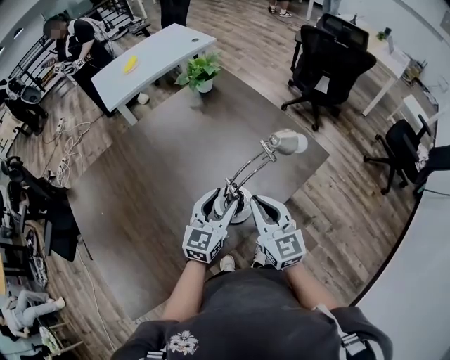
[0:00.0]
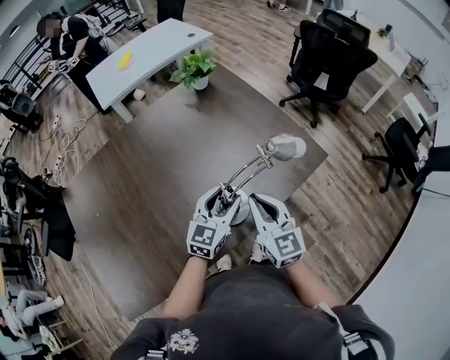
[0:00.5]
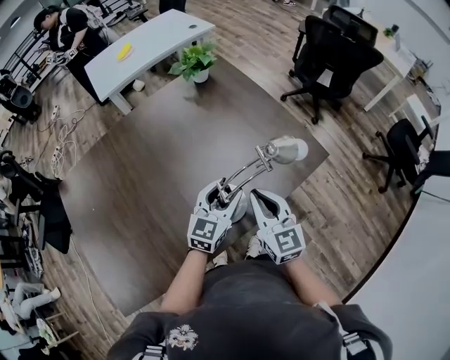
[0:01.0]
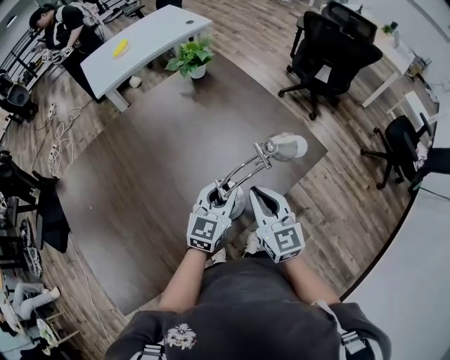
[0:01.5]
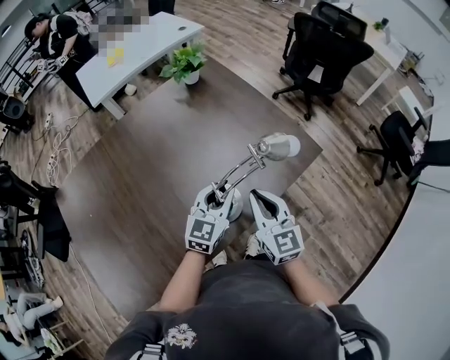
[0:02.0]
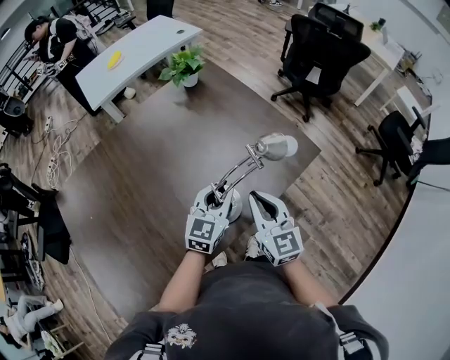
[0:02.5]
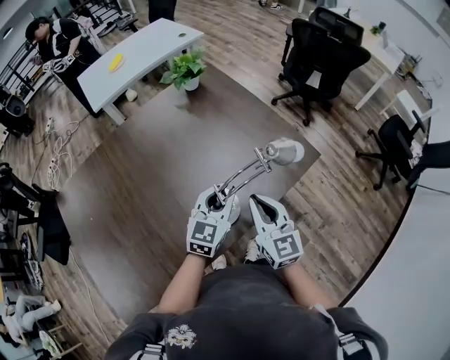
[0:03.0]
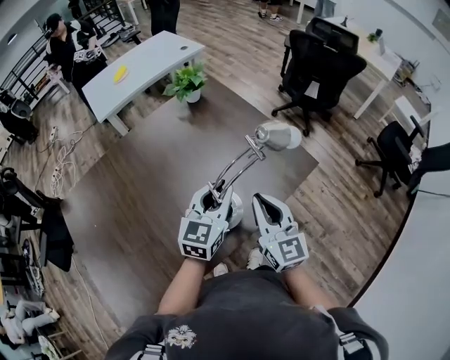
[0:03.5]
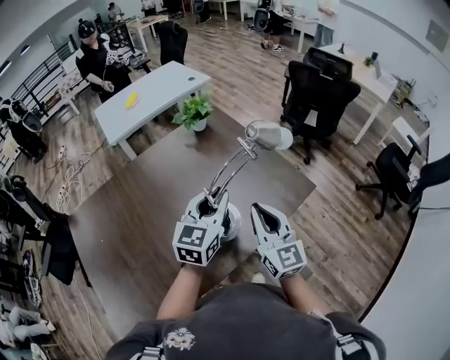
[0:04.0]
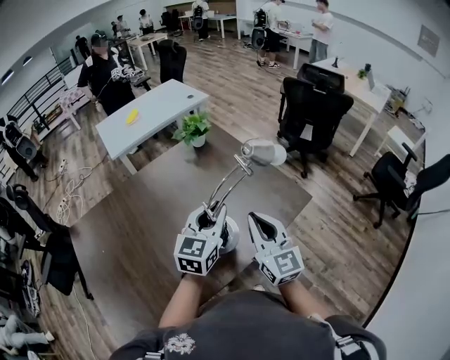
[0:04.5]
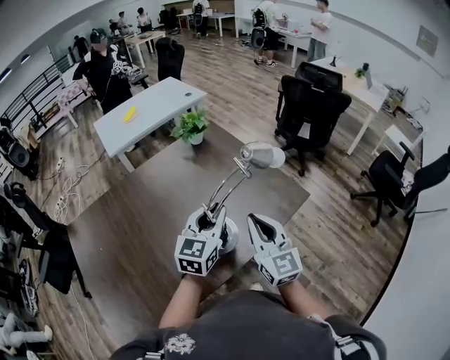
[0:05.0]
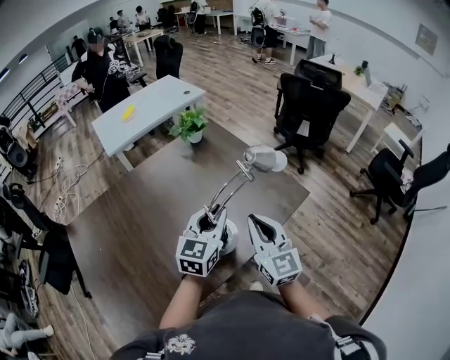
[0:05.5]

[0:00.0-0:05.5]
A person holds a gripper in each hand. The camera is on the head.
0:00.0 to 0:02.0: The left gripper changes place by approximately 5 cm, and closes its fingers.
0:02.0 to 0:03.5: The two grippers go roughly 5 cm upward.
0:03.5 to 0:05.5: The right gripper changes place by some 5 cm.

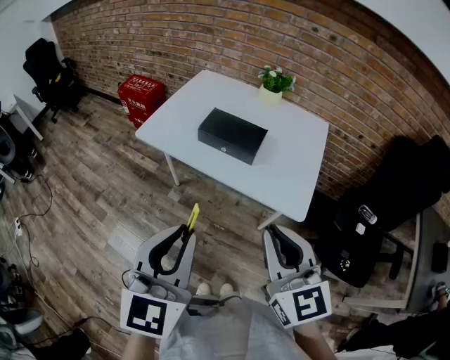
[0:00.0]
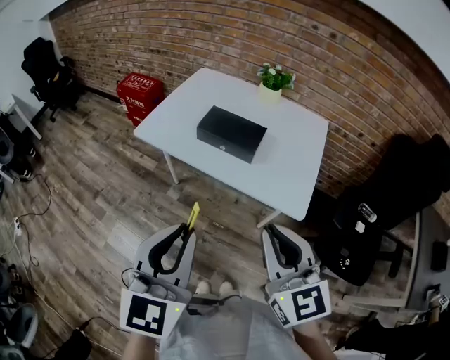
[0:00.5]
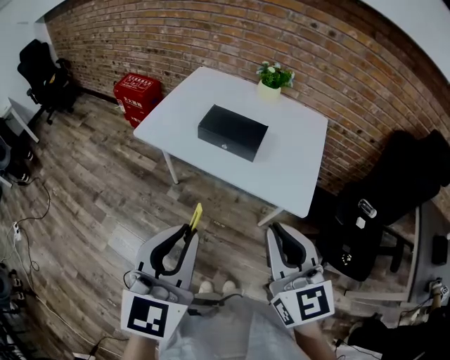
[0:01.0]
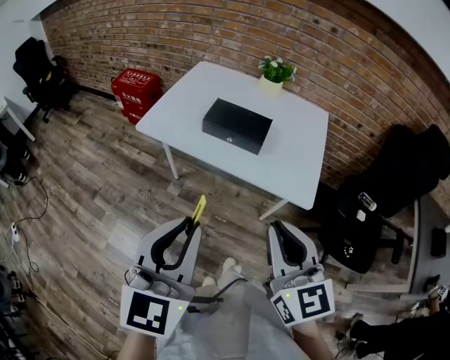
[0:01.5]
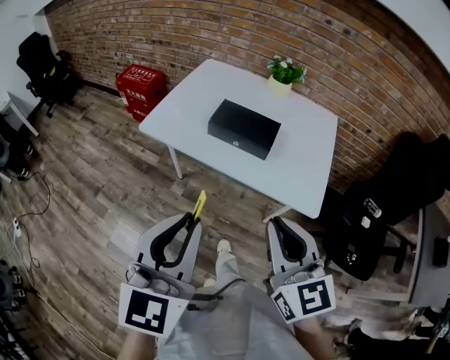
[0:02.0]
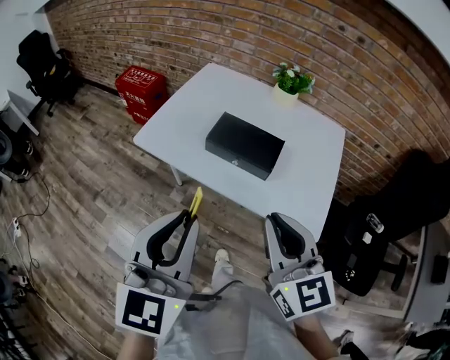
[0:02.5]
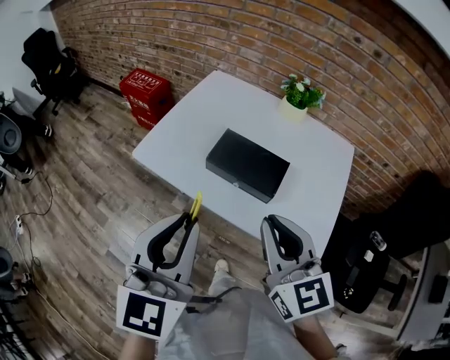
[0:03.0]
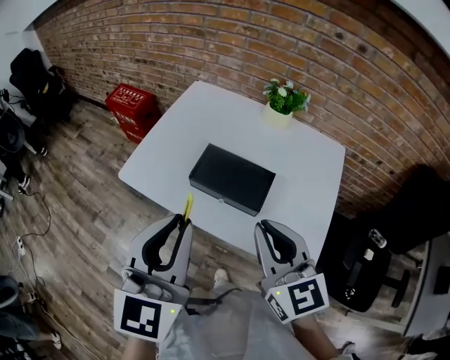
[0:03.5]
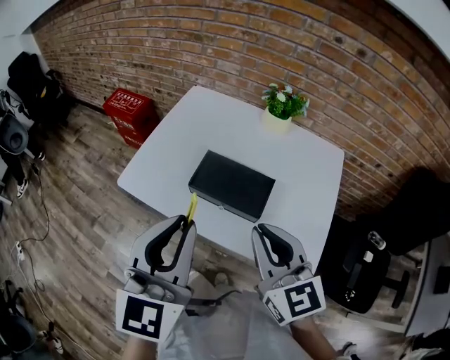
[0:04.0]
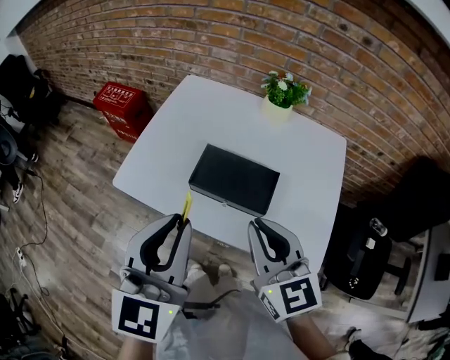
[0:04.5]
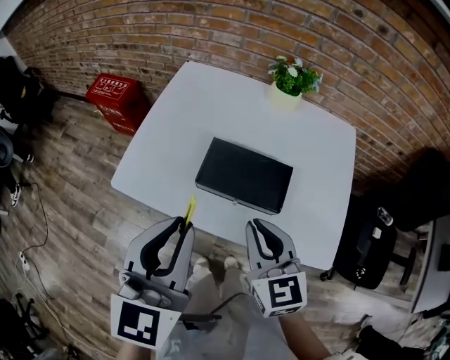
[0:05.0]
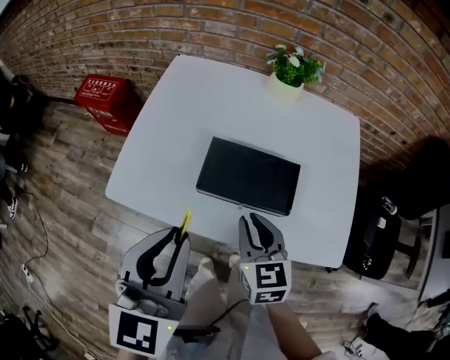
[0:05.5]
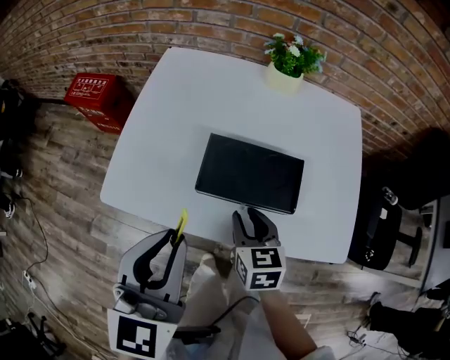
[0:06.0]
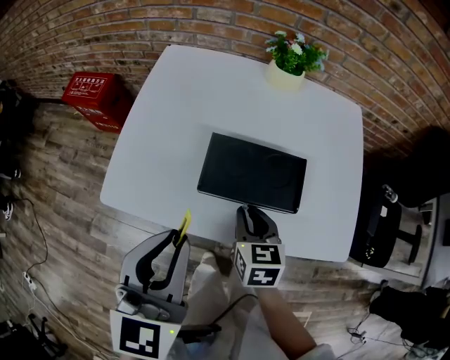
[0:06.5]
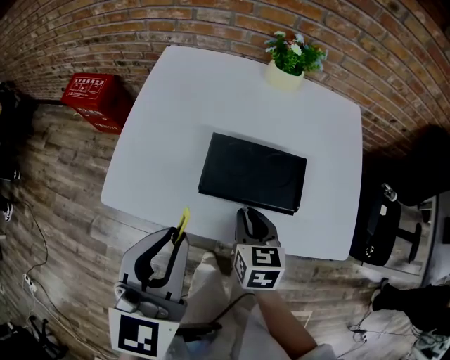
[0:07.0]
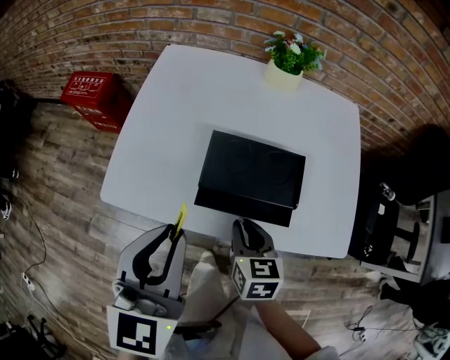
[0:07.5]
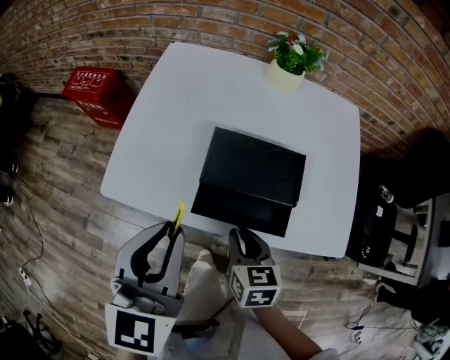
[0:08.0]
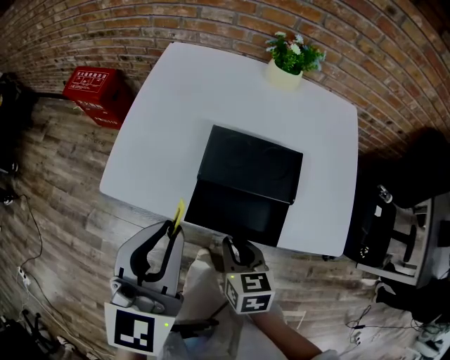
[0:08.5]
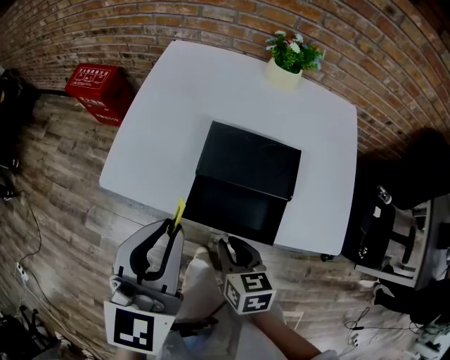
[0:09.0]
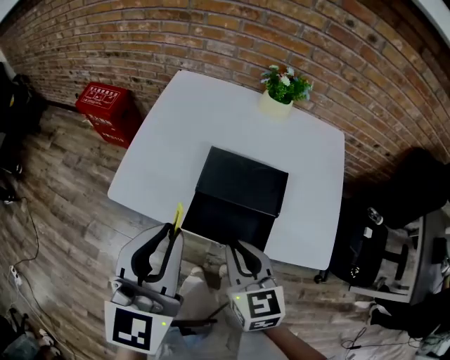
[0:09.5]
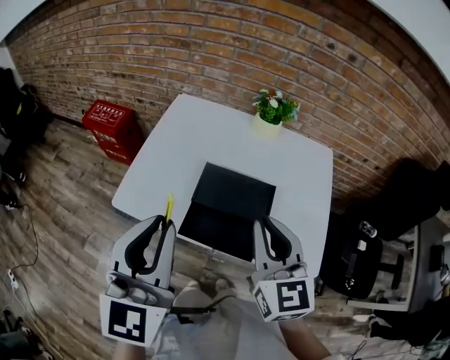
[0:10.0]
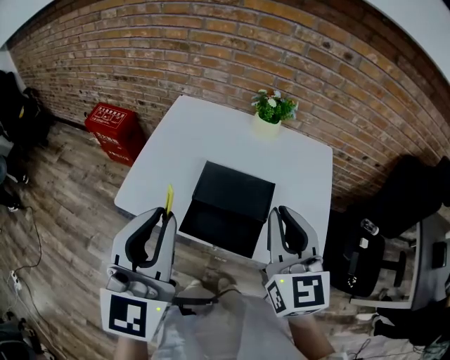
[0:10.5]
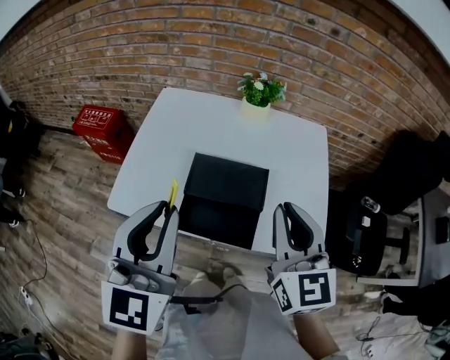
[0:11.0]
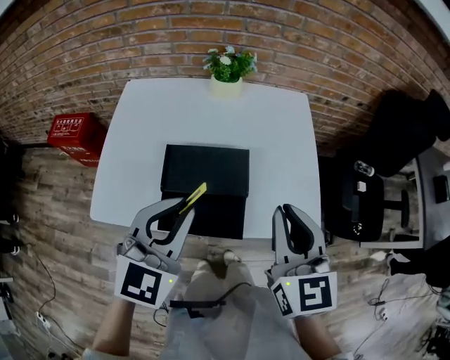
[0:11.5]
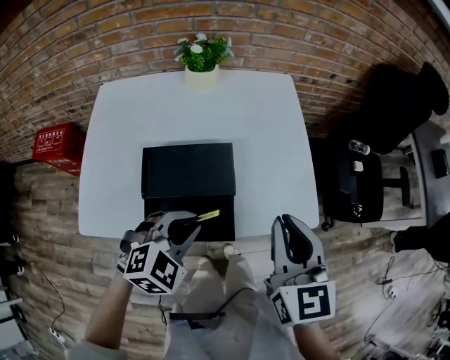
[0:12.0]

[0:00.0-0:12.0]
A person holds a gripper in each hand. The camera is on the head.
0:00.0 to 0:02.0: The two grippers go some 5 cm to the left.
0:02.0 to 0:04.0: Both grippers move forward, some 25 cm.
0:04.0 to 0:06.0: The left gripper shifts some 20 cm downward, to the left and forward, while the right gripper goes roughly 25 cm downward and forward, and rotates some 40 degrees.
0:06.0 to 0:08.0: The right gripper is displaced backward by approximately 5 cm.
0:08.0 to 0:10.0: The left gripper heads upward, covering about 15 cm, while the right gripper travels upward by approximately 25 cm, and points its fingers about 30 degrees further upward.
0:10.0 to 0:12.0: The left gripper heads downward, covering about 25 cm, and tilts its fingers some 40 degrees downward. Meanwhile the right gripper ends up approximately 15 cm from where it was, and swivels about 30 degrees.

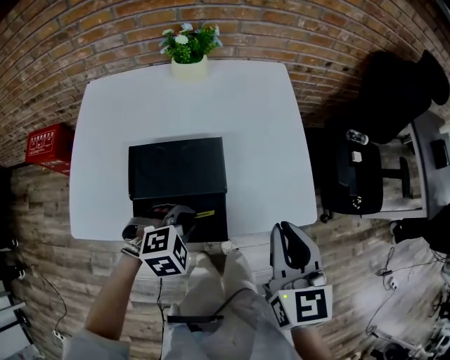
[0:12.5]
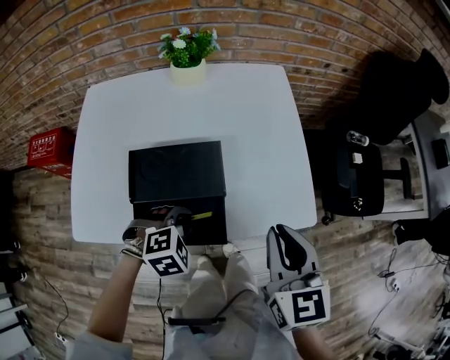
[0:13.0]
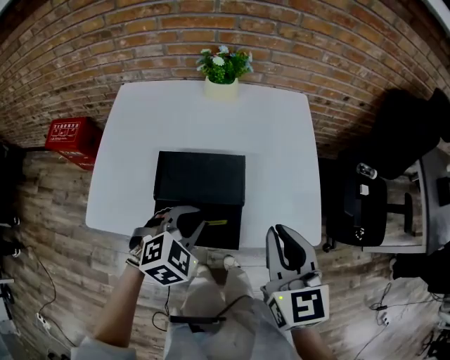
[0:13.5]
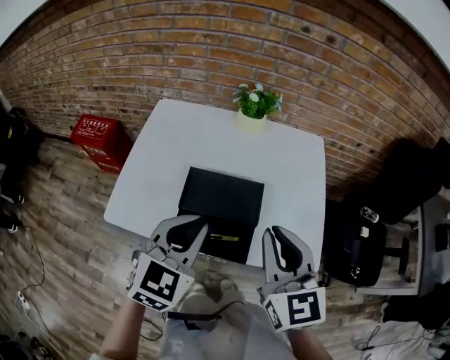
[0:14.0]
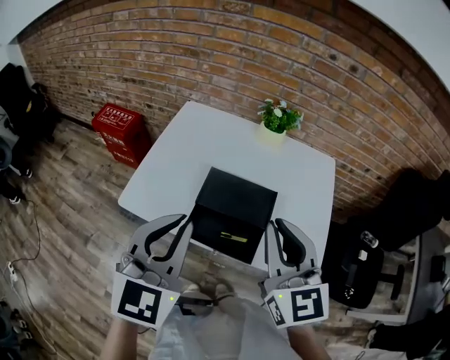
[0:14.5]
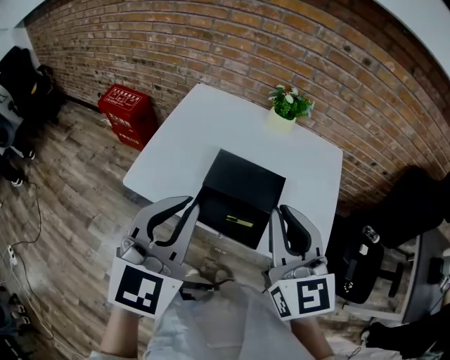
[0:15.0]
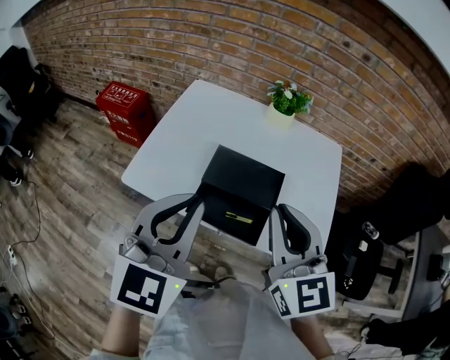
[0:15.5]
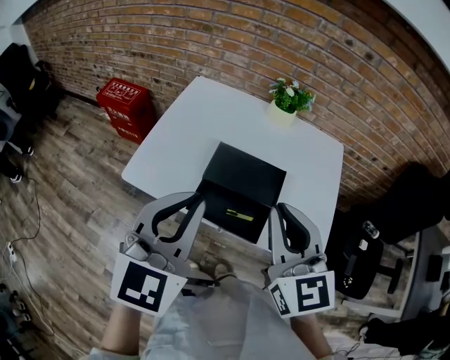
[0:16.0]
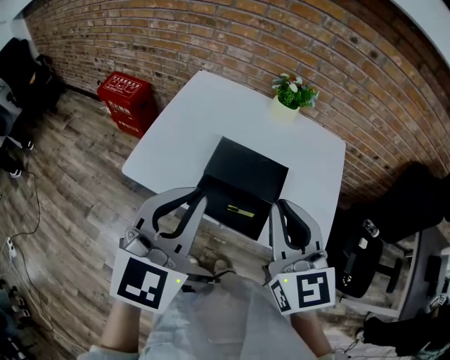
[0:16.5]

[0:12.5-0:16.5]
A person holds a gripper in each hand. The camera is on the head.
0:12.5 to 0:14.5: The right gripper moves upward, some 15 cm, and rotates roughly 40 degrees. Meanwhile the left gripper shifts approximately 35 cm upward, and angles its fingers upward, by approximately 50 degrees.
0:14.5 to 0:16.5: The grippers make only small movements.

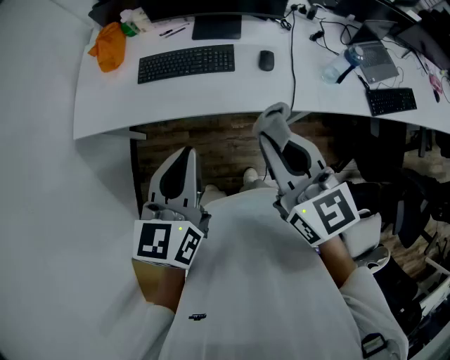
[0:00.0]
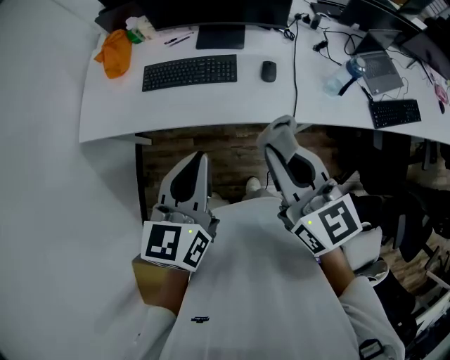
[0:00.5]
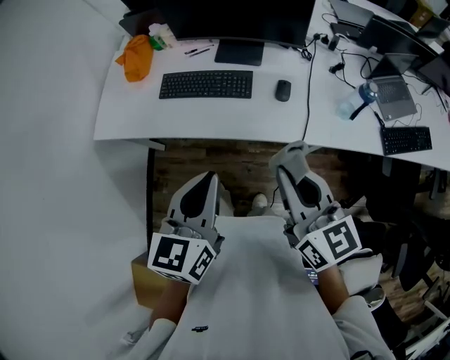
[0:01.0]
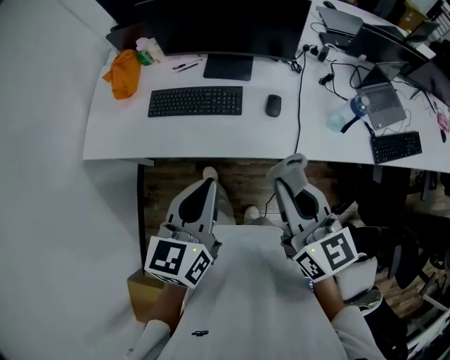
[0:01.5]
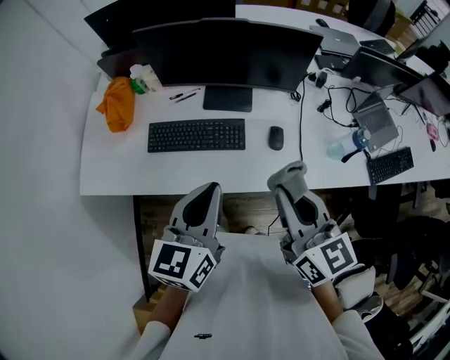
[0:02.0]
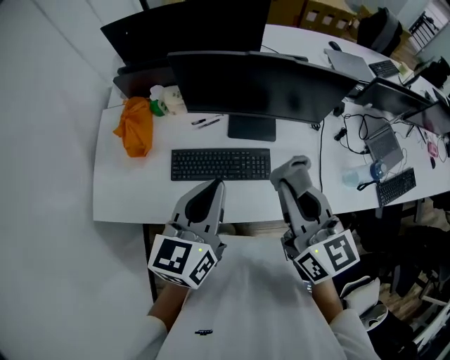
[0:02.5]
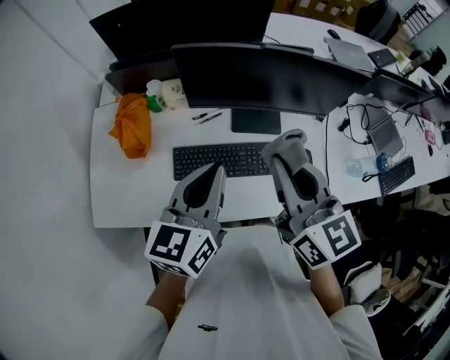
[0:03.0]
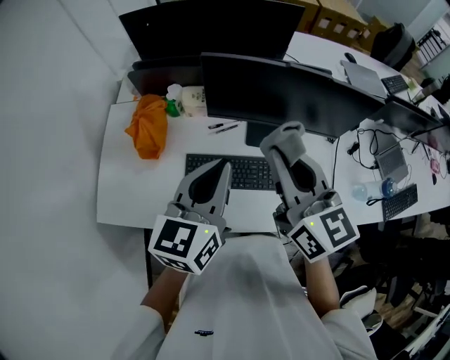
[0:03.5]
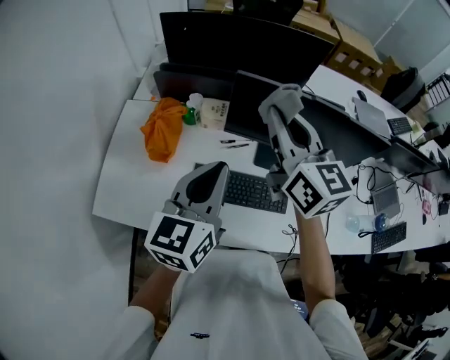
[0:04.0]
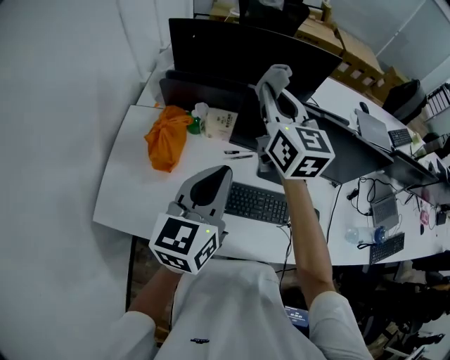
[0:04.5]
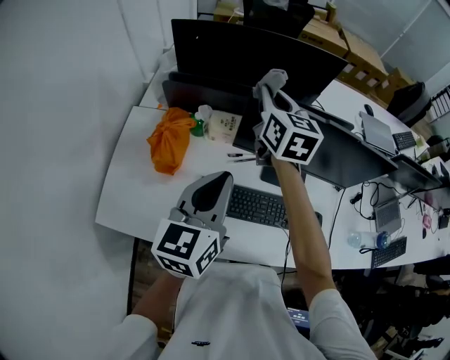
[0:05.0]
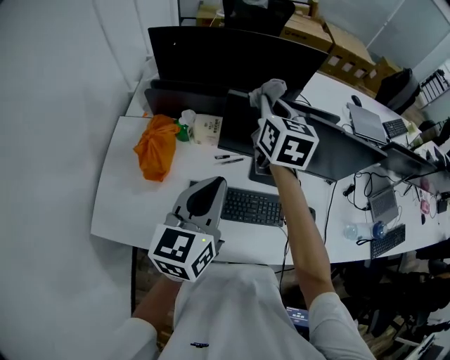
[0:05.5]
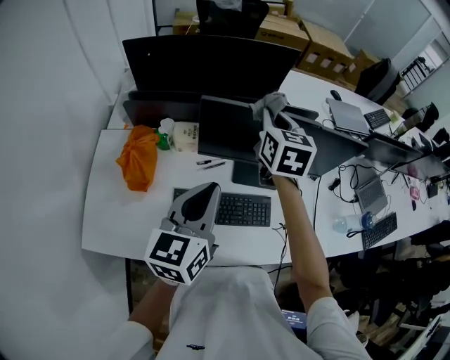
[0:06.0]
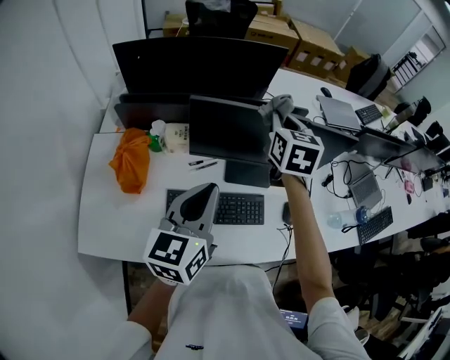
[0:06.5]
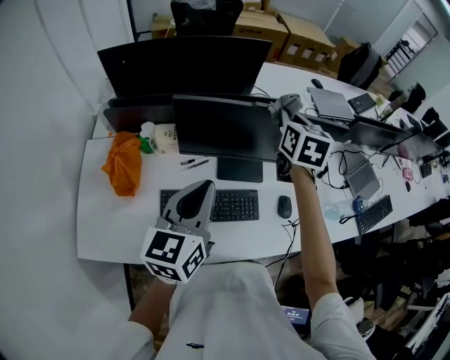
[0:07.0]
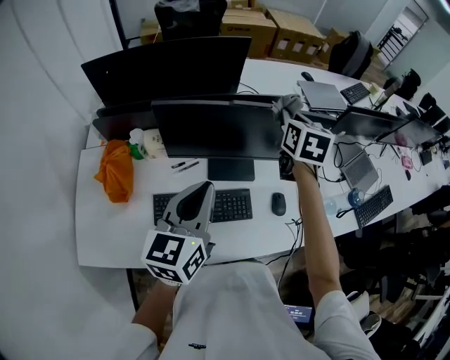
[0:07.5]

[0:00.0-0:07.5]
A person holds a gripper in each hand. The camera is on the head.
0:00.0 to 0:02.0: The grippers both shift forward by about 15 cm.
0:02.0 to 0:04.0: The right gripper moves forward and to the left, approximately 40 cm. The left gripper travels to the left and forward by some 30 cm.
0:04.0 to 0:05.5: The right gripper shifts approximately 15 cm forward and downward, and turns by some 20 degrees.
0:05.5 to 0:07.5: The right gripper is displaced to the right by approximately 25 cm, and swivels roughly 20 degrees; the left gripper heads to the right, covering about 10 cm.
